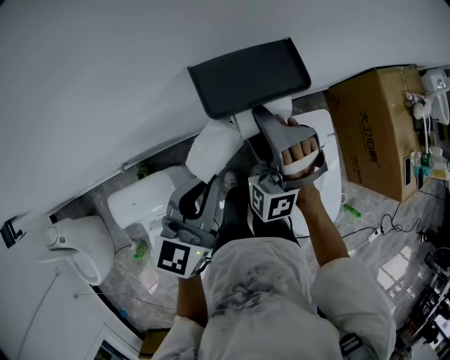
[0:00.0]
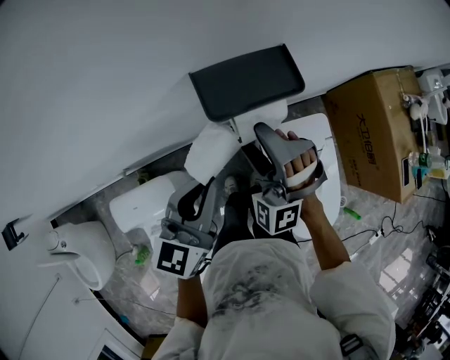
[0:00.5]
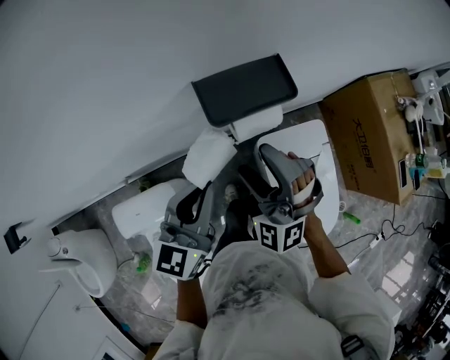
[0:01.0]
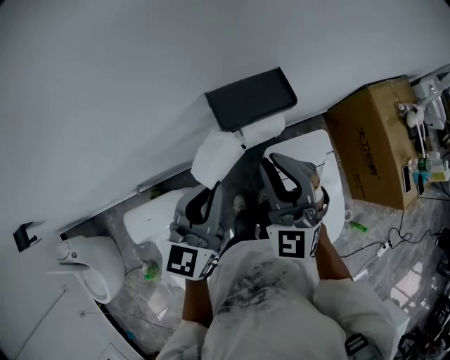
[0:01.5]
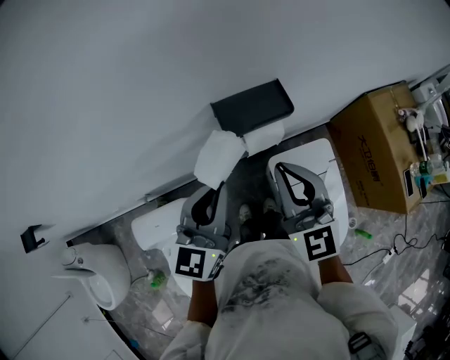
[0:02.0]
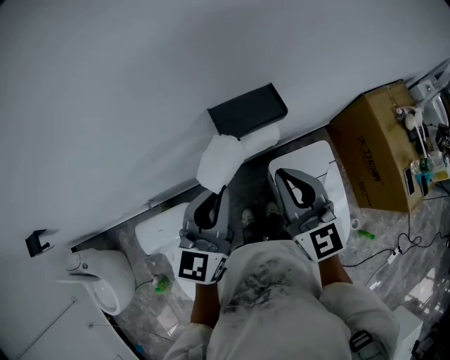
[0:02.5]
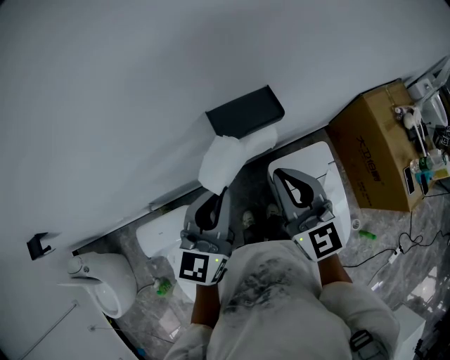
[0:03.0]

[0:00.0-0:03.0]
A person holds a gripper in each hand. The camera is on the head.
0:00.0 to 0:01.5: The right gripper travels upward and backward by roughly 10 cm, twists roughly 40 degrees clockwise, seen from behind, and closes up. Meanwhile the left gripper heads upward, covering approximately 5 cm.
0:01.5 to 0:03.0: The left gripper heads upward, covering approximately 5 cm, while the right gripper changes place by approximately 5 cm, and rotates some 40 degrees.

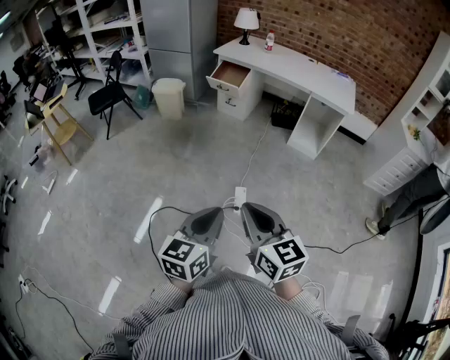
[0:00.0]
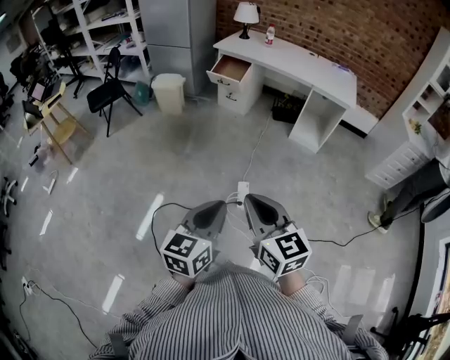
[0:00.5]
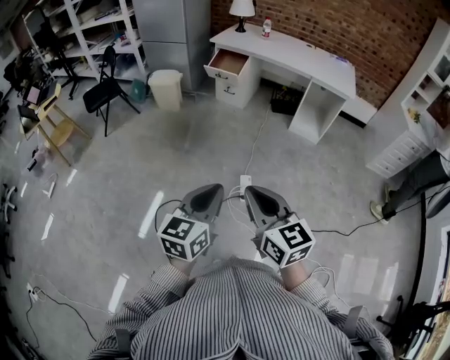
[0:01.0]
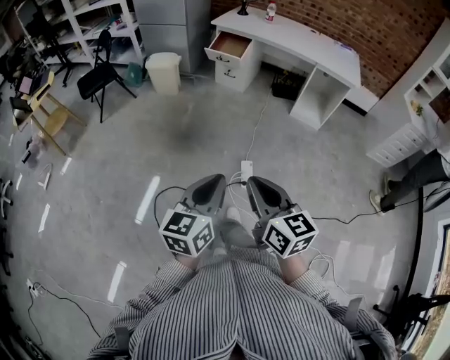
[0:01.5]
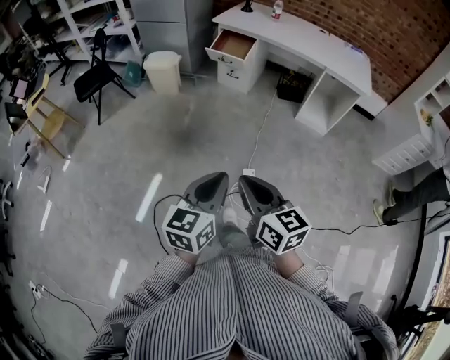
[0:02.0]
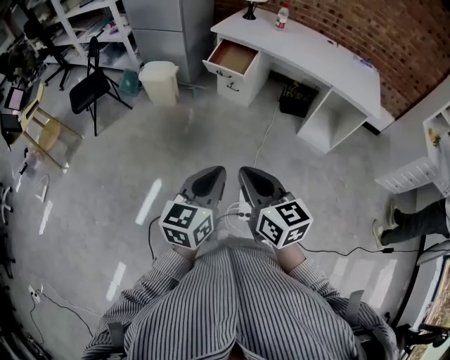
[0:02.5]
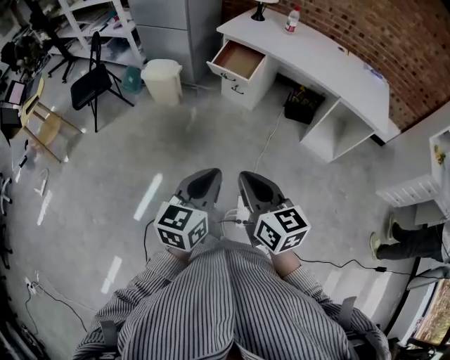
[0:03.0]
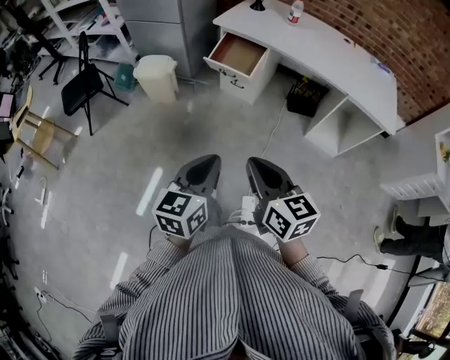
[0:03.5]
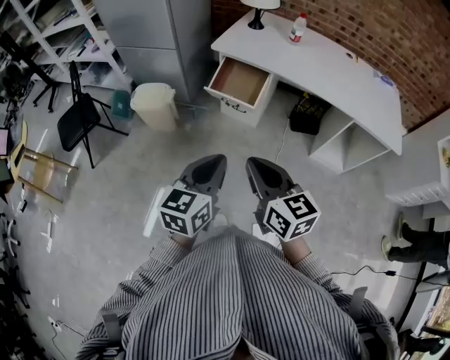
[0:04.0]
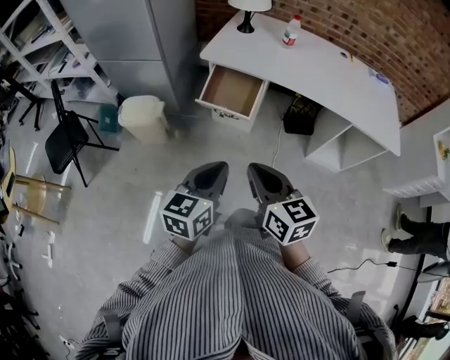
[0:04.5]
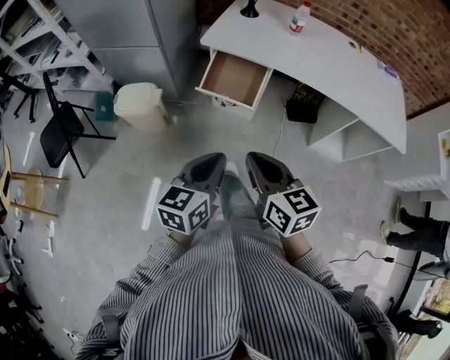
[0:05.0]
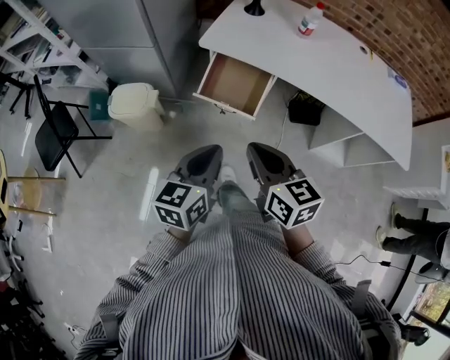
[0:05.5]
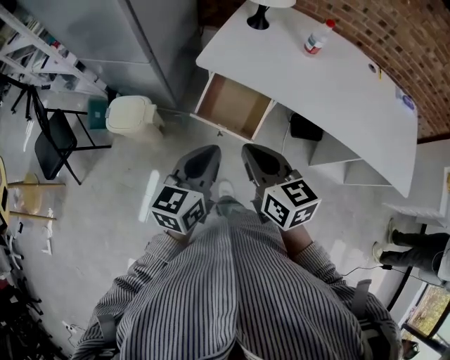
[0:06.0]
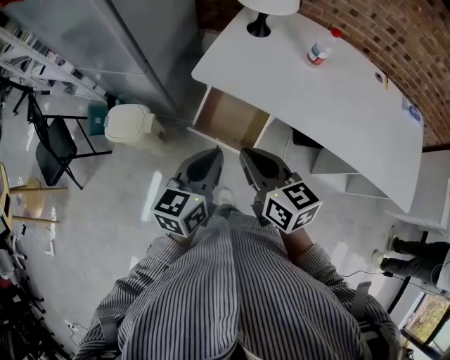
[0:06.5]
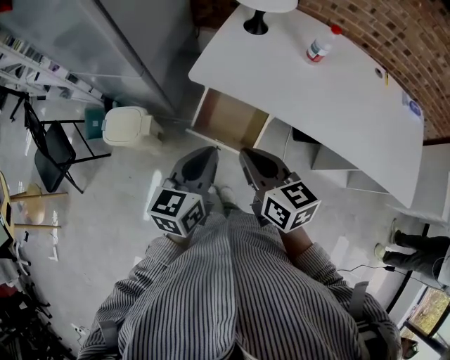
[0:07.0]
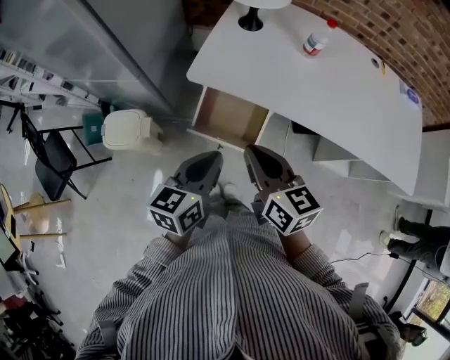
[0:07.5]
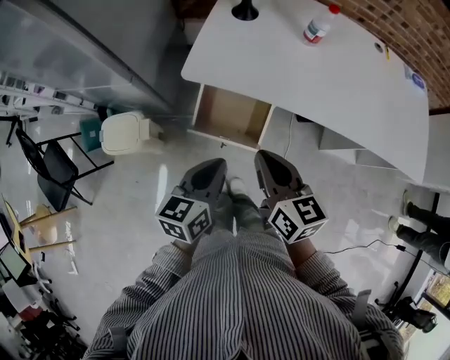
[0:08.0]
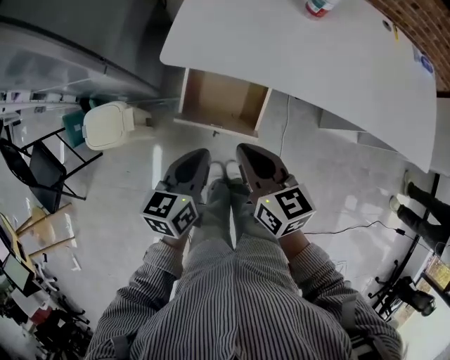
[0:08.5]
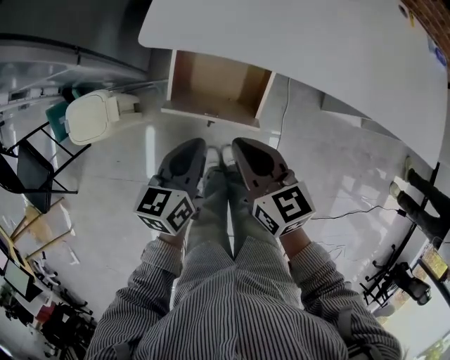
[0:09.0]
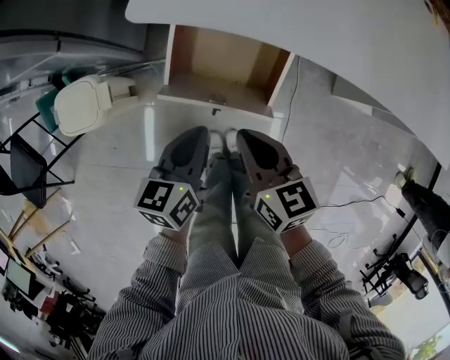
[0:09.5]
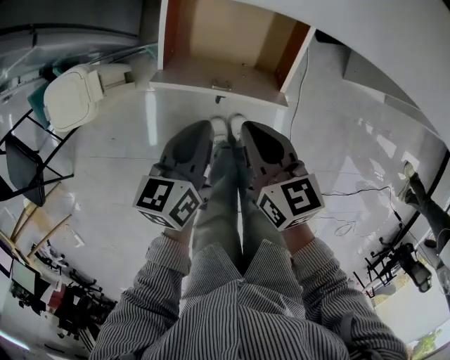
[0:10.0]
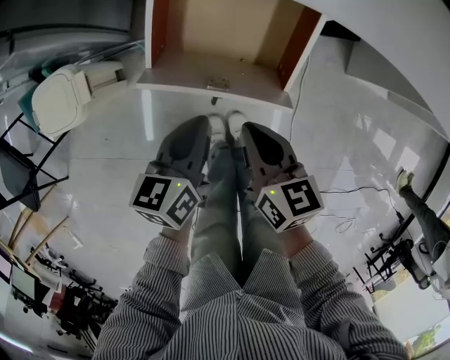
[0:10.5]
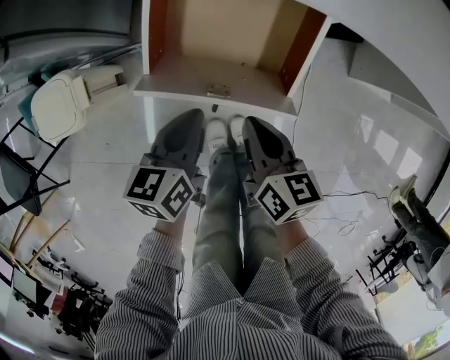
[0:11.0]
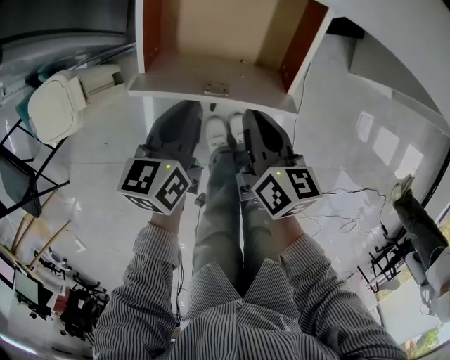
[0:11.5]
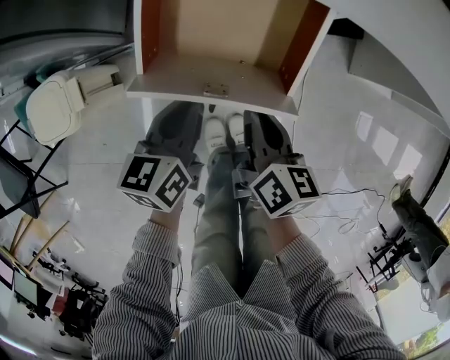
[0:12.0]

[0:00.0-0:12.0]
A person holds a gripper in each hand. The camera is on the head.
0:00.0 to 0:02.0: The right gripper goes roughly 20 cm forward and to the left; the left gripper shifts some 20 cm forward.
0:02.0 to 0:04.0: Both grippers are carried forward, about 50 cm.
0:04.0 to 0:06.0: Both grippers move forward, some 35 cm.
0:06.0 to 0:08.0: The right gripper moves forward, about 10 cm. Meanwhile the left gripper heads forward and downward, covering about 10 cm.
0:08.0 to 0:10.0: Both grippers travel together downward, about 30 cm.
0:10.0 to 0:12.0: The right gripper shifts about 10 cm downward, and turns by approximately 30 degrees, while the left gripper goes some 10 cm downward and forward.

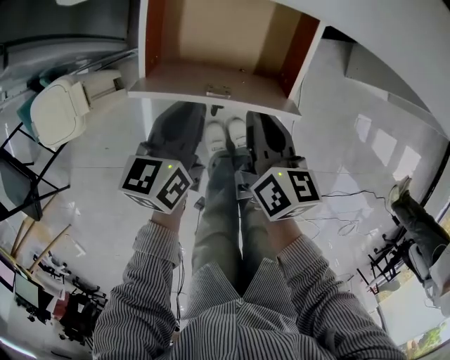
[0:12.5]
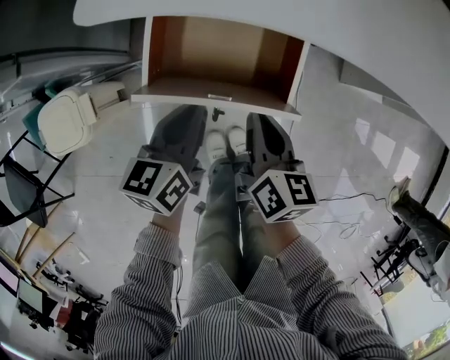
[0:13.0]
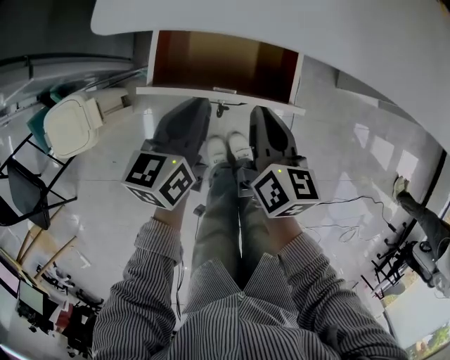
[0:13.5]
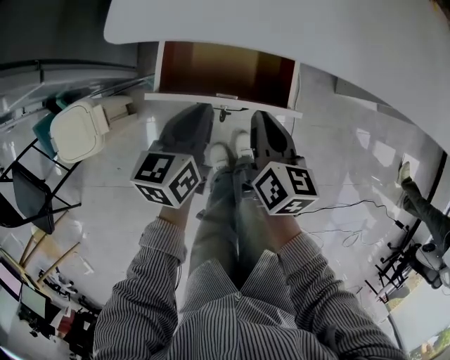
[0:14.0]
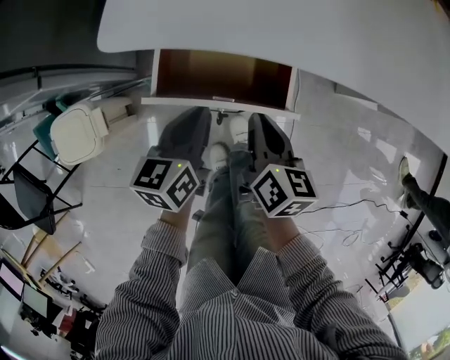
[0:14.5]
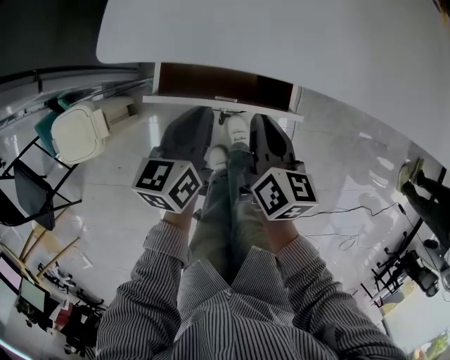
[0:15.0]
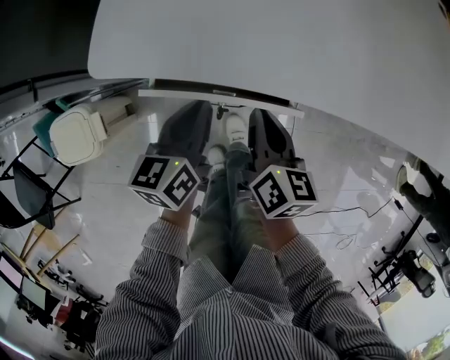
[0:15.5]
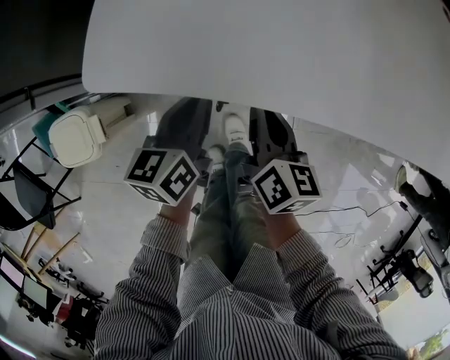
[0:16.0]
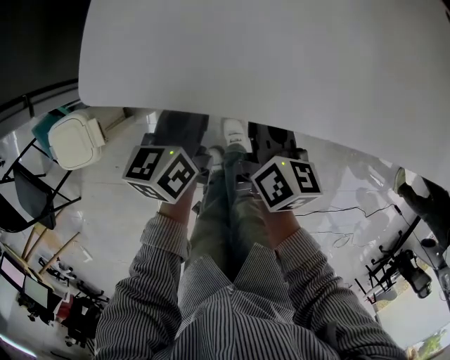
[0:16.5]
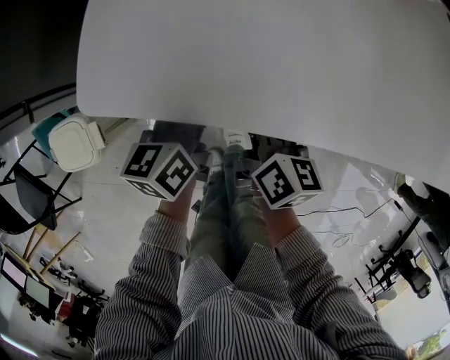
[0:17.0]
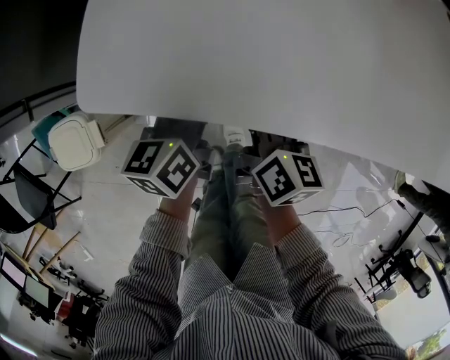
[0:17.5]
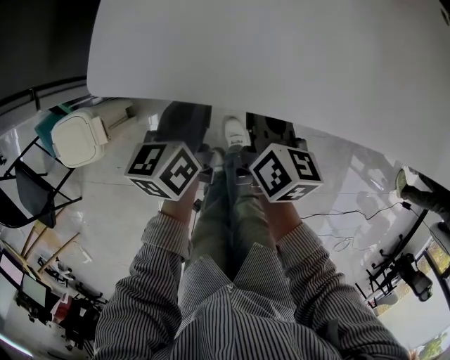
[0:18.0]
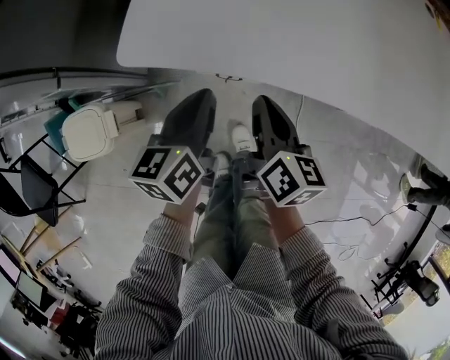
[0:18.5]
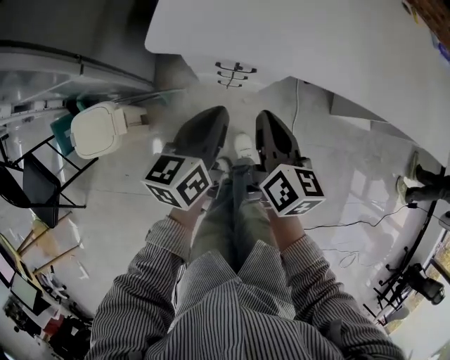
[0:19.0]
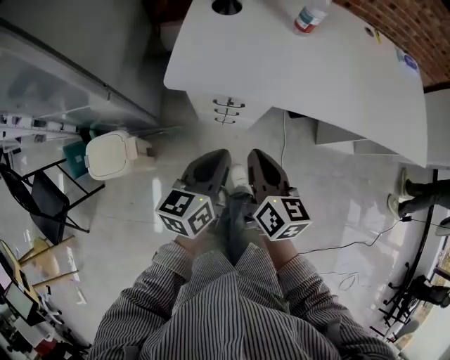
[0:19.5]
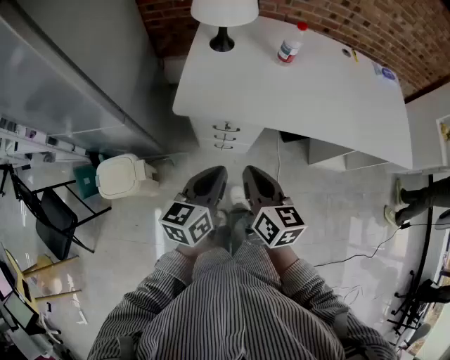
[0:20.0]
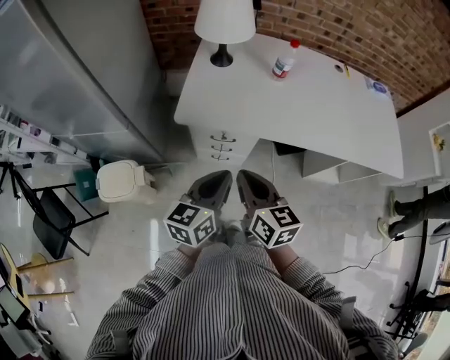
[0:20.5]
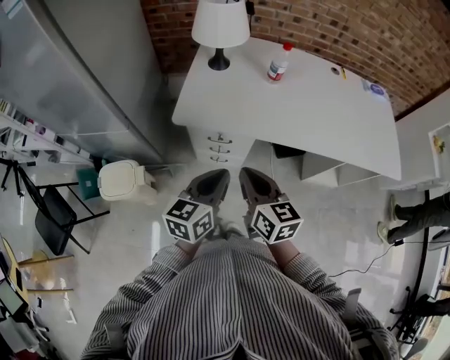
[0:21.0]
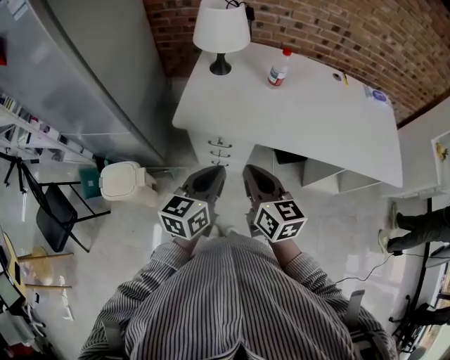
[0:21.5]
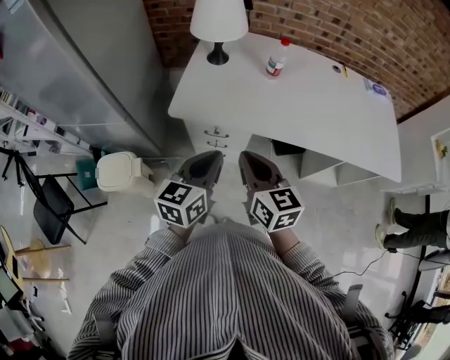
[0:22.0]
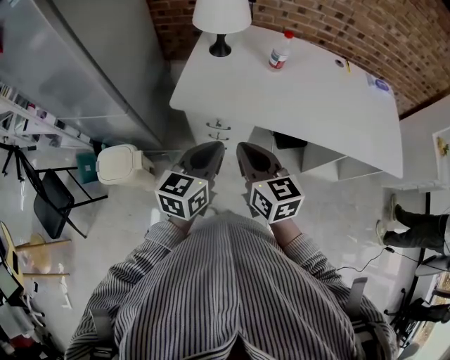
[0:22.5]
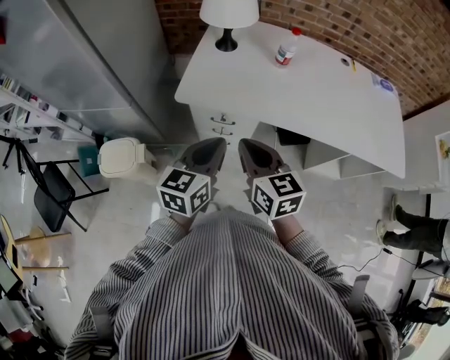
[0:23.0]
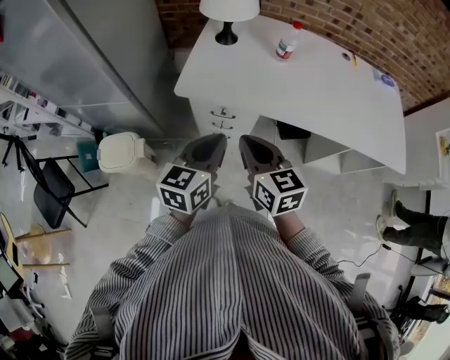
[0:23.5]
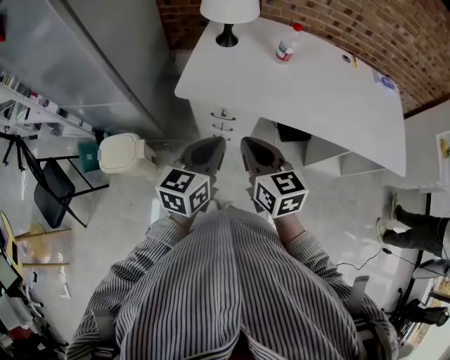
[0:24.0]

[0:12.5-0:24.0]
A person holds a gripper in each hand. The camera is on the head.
0:12.5 to 0:14.5: Both grippers travel together upward, some 5 cm.
0:14.5 to 0:16.5: Both grippers move forward, roughly 10 cm.
0:16.5 to 0:18.5: The left gripper travels upward and backward by some 10 cm. Meanwhile the right gripper ends up roughly 5 cm from where it was.
0:18.5 to 0:20.0: The two grippers go some 25 cm upward and backward.
0:20.0 to 0:22.0: The right gripper goes about 10 cm upward; the left gripper heads upward and to the right, covering approximately 10 cm.
0:22.0 to 0:24.0: The grippers move only a little.
